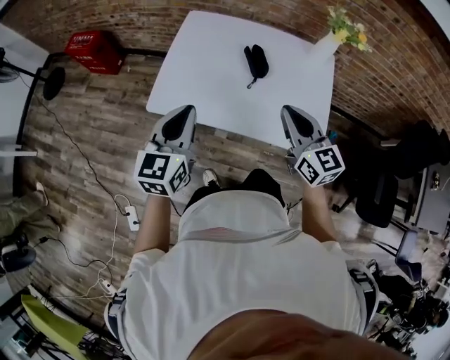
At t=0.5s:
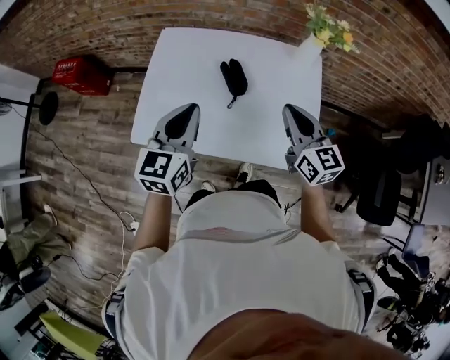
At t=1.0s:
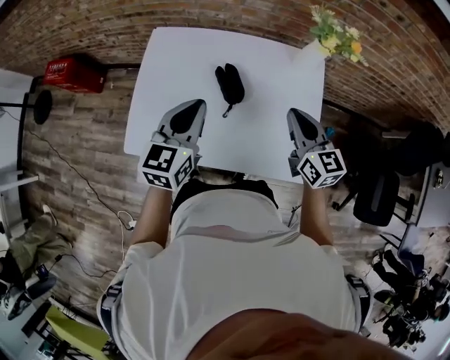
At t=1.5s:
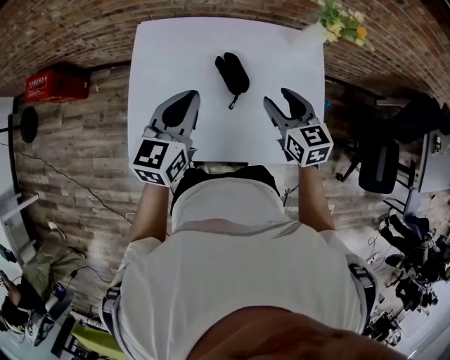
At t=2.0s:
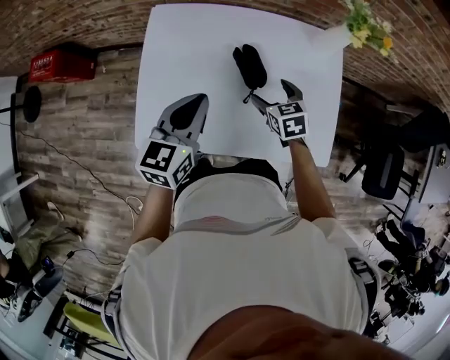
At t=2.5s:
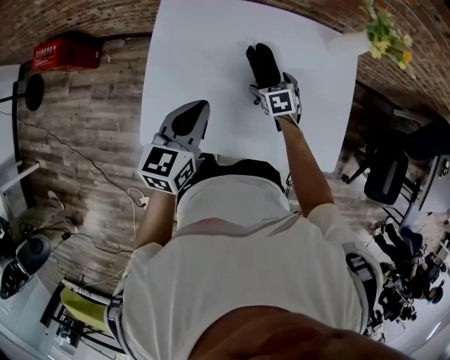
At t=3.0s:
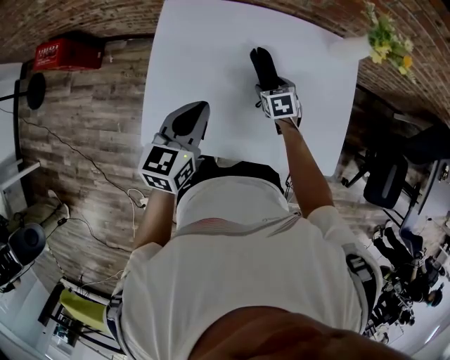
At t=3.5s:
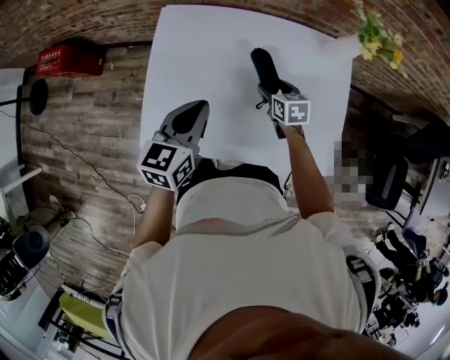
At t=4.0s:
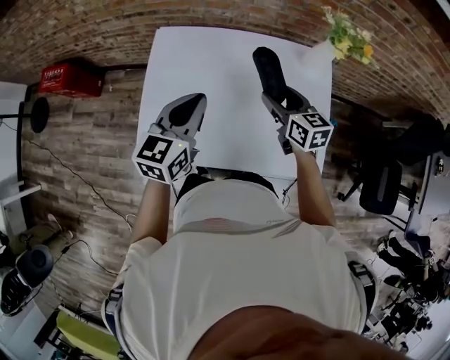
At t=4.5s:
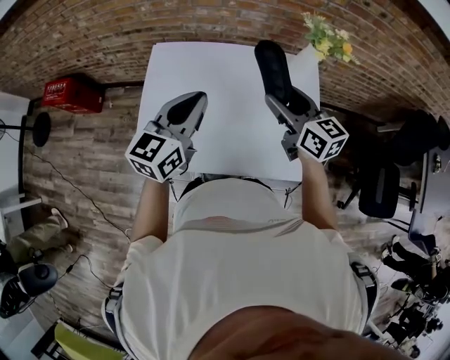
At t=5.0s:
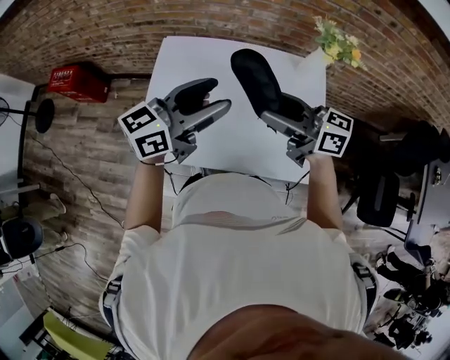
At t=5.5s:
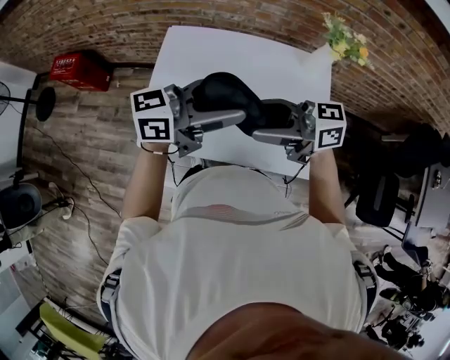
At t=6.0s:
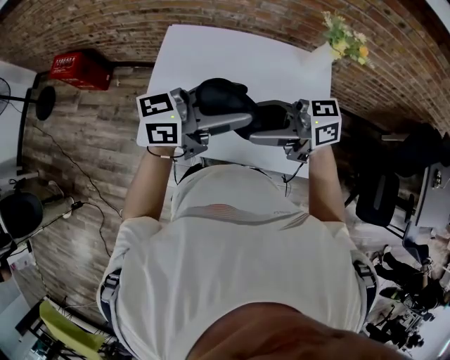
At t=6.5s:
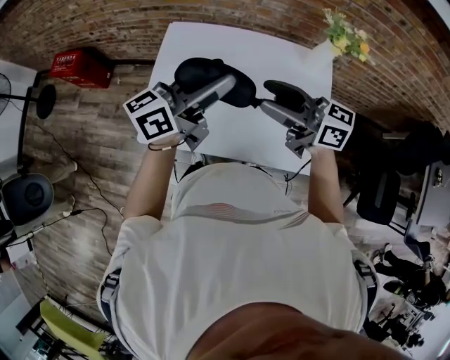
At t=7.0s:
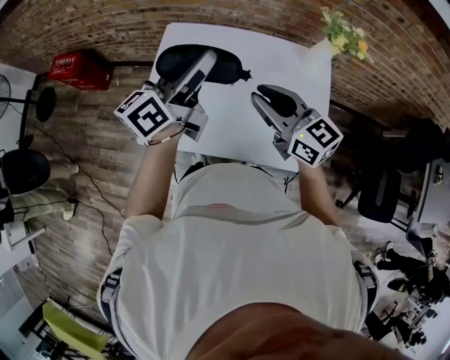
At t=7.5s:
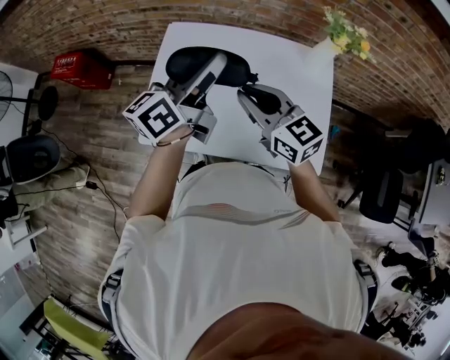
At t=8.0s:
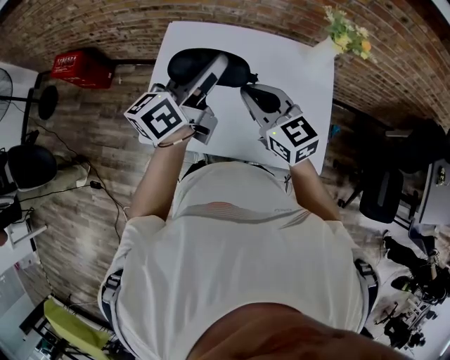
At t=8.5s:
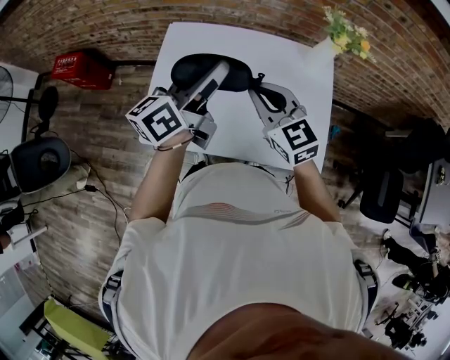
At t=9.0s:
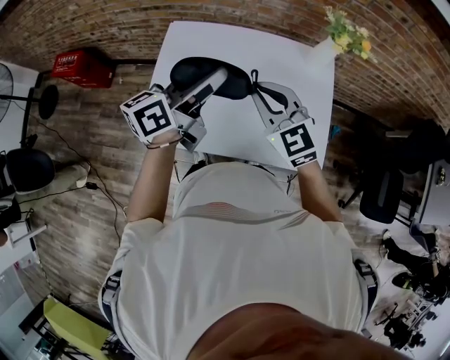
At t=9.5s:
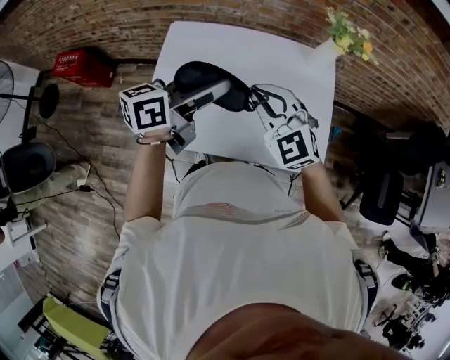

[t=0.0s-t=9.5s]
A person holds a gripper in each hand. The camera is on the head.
t=0.0s to t=2.0s: The right gripper heads forward and downward, covering about 30 cm, tips its fingers downward by some 40 degrees, and opens up. Meanwhile the left gripper shifts approximately 20 cm forward.
t=2.0s to t=4.0s: The right gripper goes roughly 10 cm upward, and swivels about 30 degrees.
t=4.0s to t=5.5s: The left gripper shifts by some 15 cm, swivels about 50 degrees, and opens up. The right gripper moves some 25 cm, and changes its angle by roughly 60 degrees.
t=5.5s to t=7.5s: The left gripper moves approximately 10 cm, and swivels approximately 40 degrees, while the right gripper ends up approximately 5 cm from where it was, changes its angle by about 50 degrees, and closes its fingers.
t=7.5s to t=9.5s: The right gripper swivels roughly 40 degrees. Meanwhile the left gripper changes place by approximately 5 cm, and rotates about 30 degrees.

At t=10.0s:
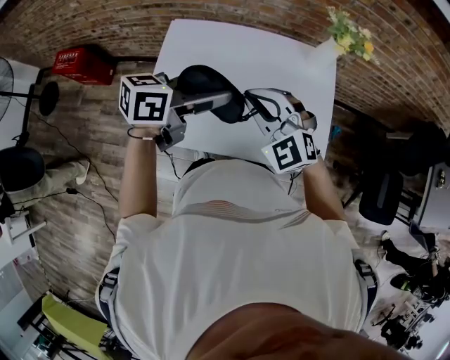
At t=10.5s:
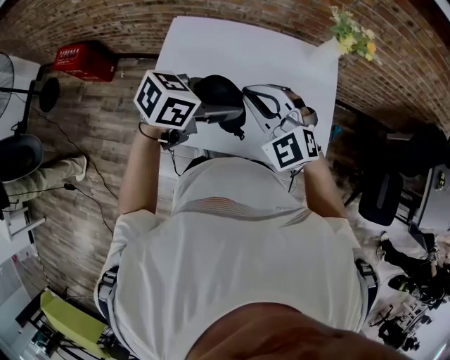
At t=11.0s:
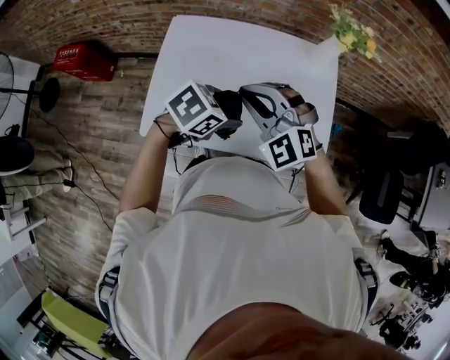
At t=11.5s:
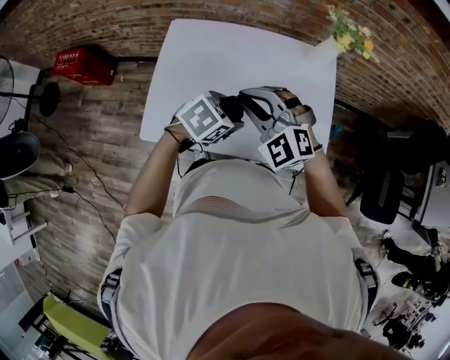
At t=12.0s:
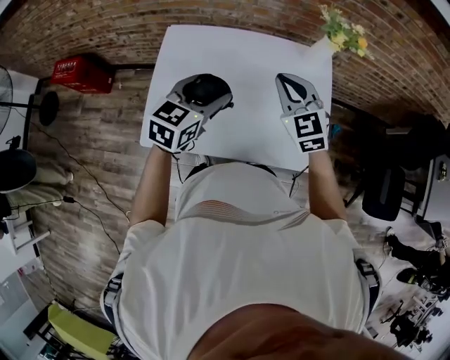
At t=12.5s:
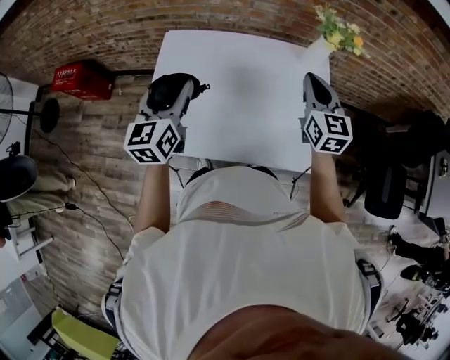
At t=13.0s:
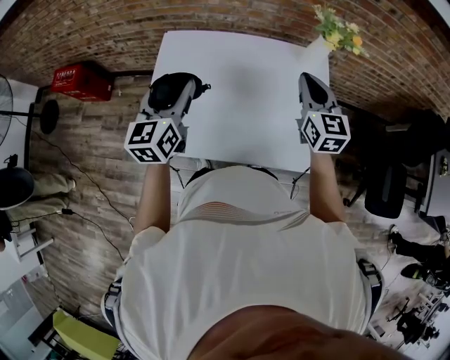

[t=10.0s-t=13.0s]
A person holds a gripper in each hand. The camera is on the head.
t=10.0s to t=11.5s: The left gripper heads downward, covering some 15 cm, and points its fingers some 40 degrees further downward.
t=11.5s to t=13.0s: The right gripper is displaced to the right and forward by about 20 cm, and rotates around the line of its fingers by roughly 50 degrees, clockwise from behind. The left gripper travels to the left, upward and forward by about 20 cm, and tilts its fingers roughly 40 degrees upward.

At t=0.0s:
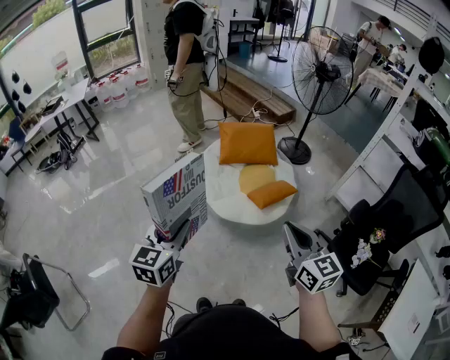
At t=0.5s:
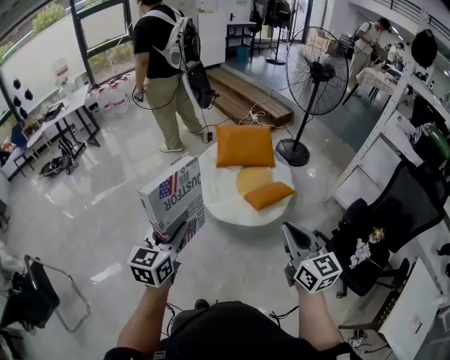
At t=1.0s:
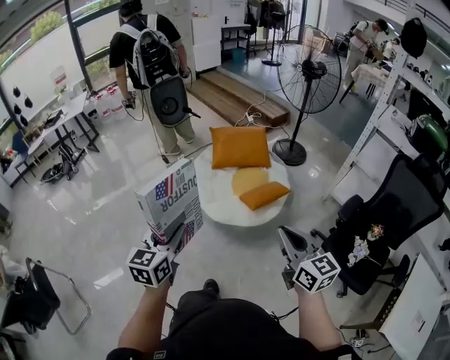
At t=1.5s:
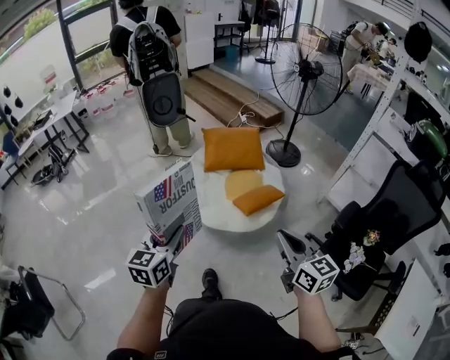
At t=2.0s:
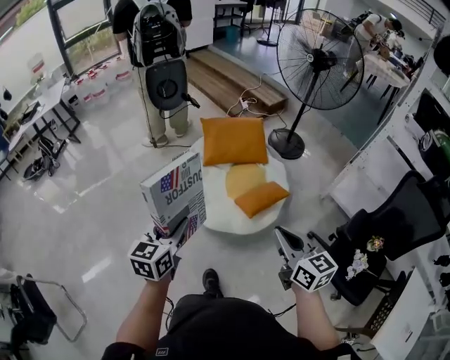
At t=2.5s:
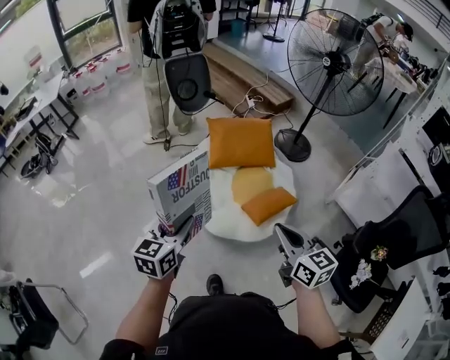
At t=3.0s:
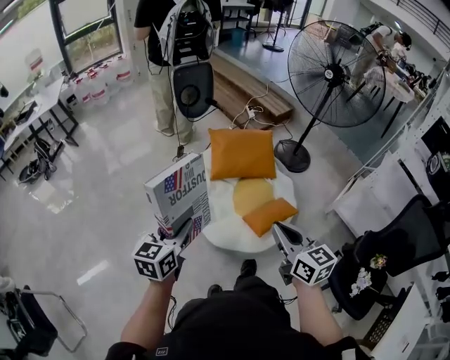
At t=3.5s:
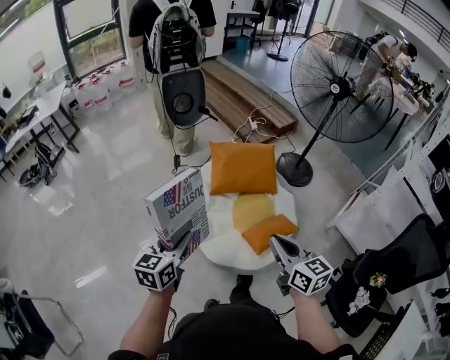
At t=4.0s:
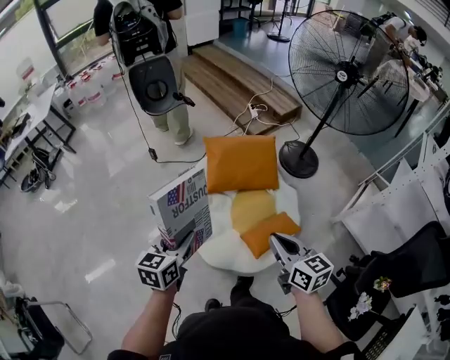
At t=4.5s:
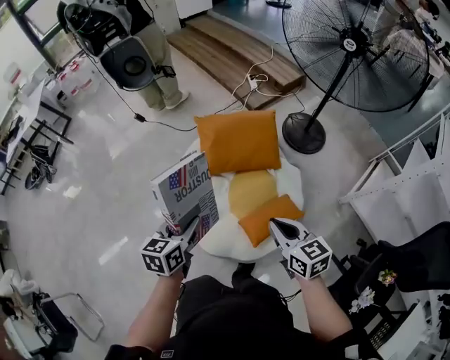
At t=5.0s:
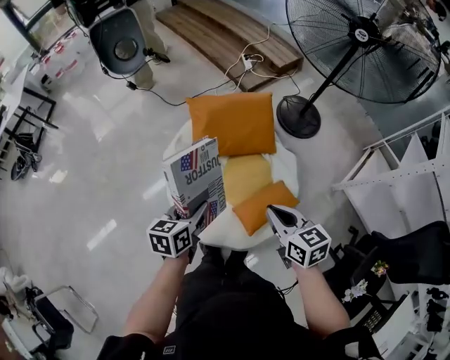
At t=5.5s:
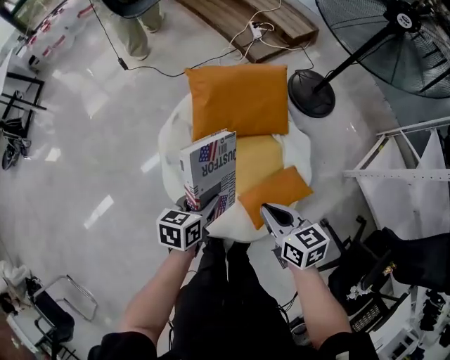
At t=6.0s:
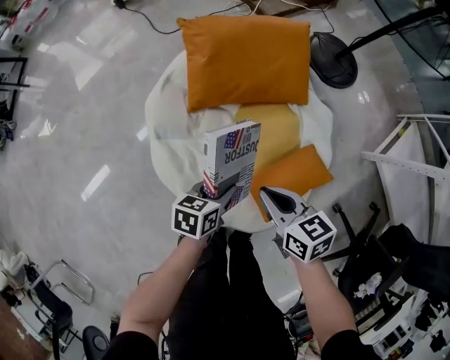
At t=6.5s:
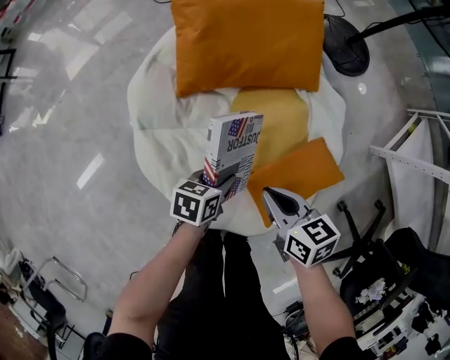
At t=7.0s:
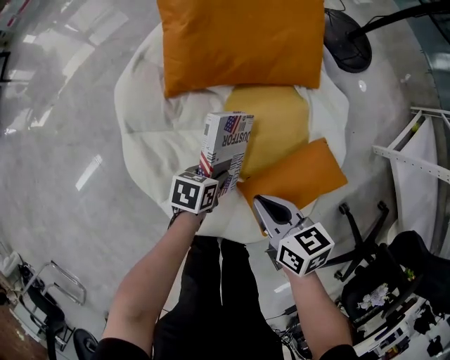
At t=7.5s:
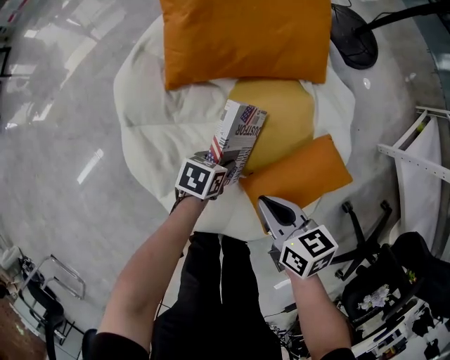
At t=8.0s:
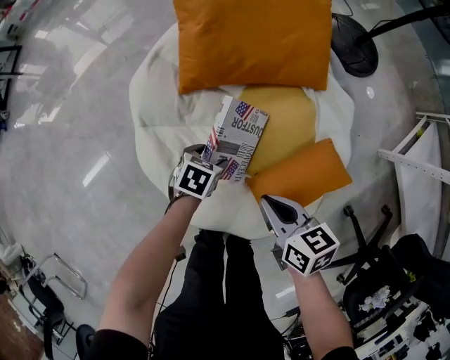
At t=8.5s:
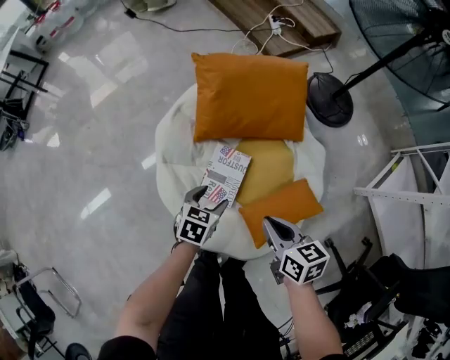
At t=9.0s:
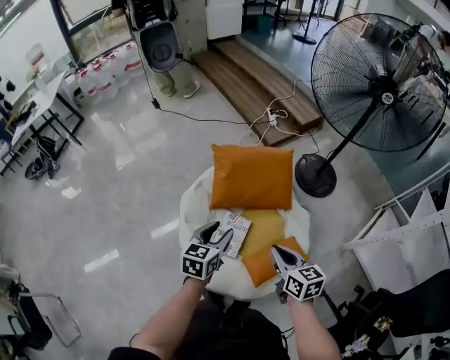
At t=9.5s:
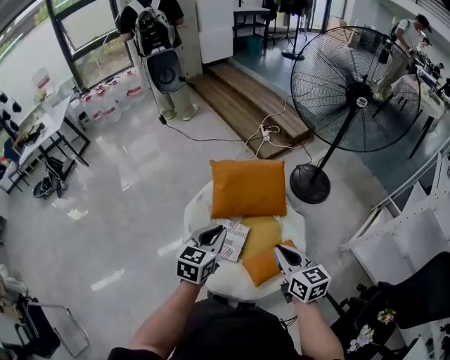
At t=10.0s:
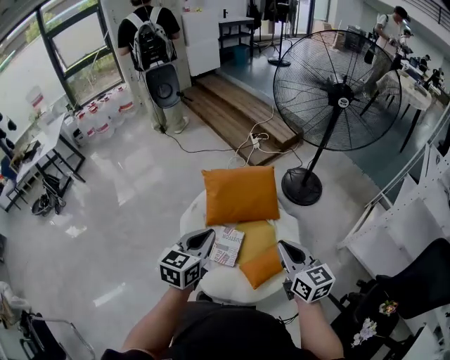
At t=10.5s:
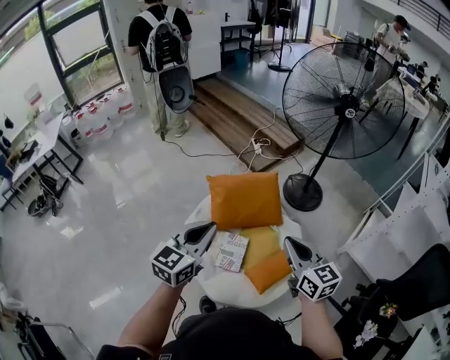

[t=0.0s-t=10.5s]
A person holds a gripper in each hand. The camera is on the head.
t=0.0s to t=2.0s: The left gripper travels forward and to the right by approximately 20 cm; the right gripper is displaced forward, to the right and downward by about 20 cm.
t=2.0s to t=4.0s: The grippers both shift forward by about 30 cm.
t=4.0s to t=6.5s: Both grippers move downward, about 50 cm. The right gripper swivels roughly 30 degrees, while the left gripper changes its angle by approximately 40 degrees.
t=6.5s to t=8.5s: The grippers both shift upward by roughly 10 cm. The left gripper changes its angle by about 20 degrees, and opens up.
t=8.5s to t=10.5s: Both grippers move upward, approximately 50 cm. The right gripper turns by about 40 degrees. The left gripper angles its fingers upward, by roughly 40 degrees, and closes up.

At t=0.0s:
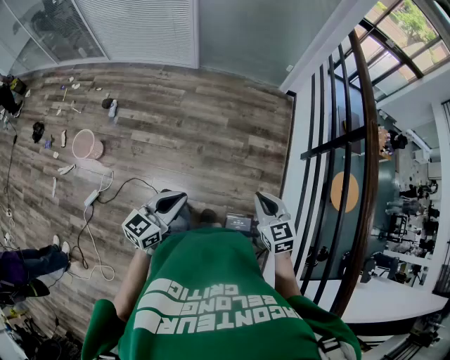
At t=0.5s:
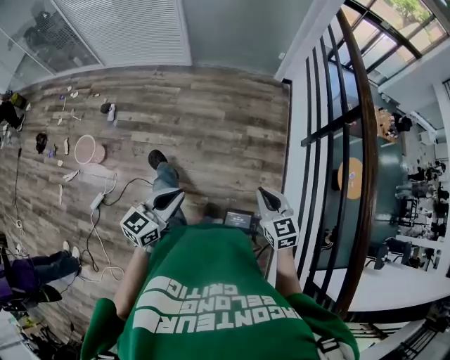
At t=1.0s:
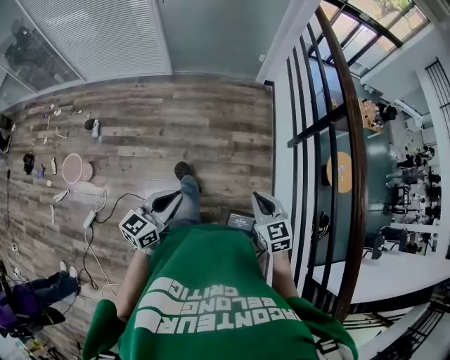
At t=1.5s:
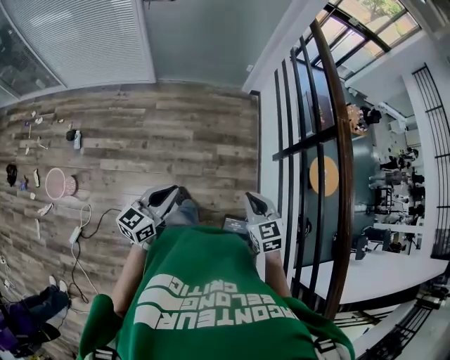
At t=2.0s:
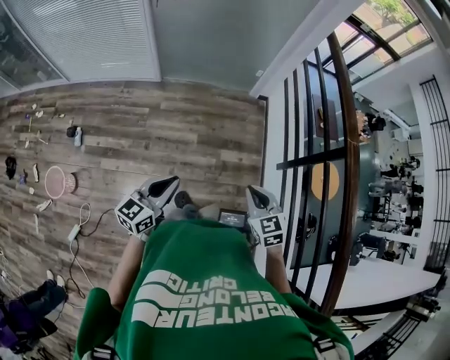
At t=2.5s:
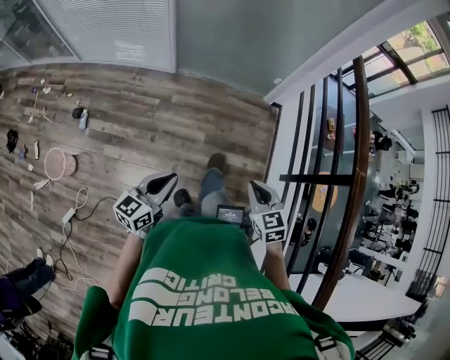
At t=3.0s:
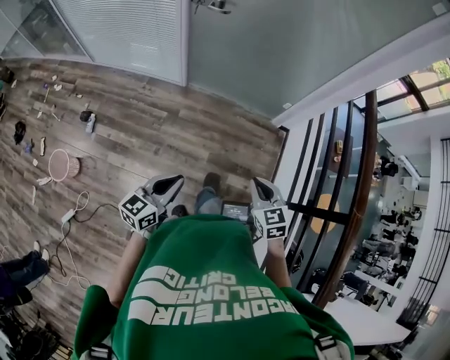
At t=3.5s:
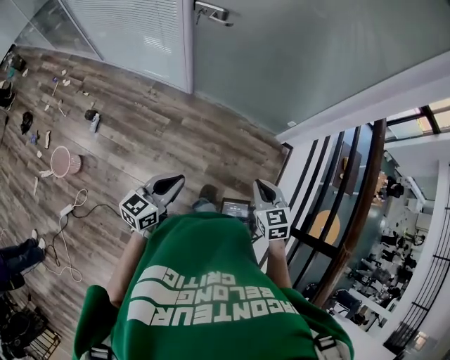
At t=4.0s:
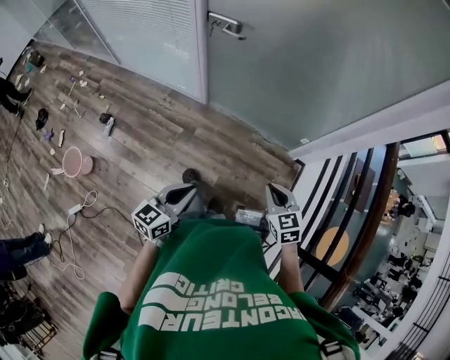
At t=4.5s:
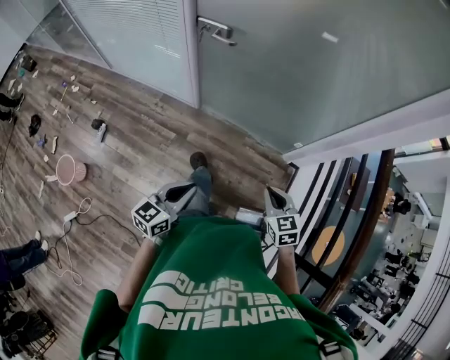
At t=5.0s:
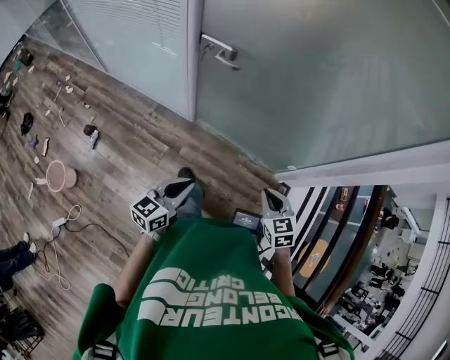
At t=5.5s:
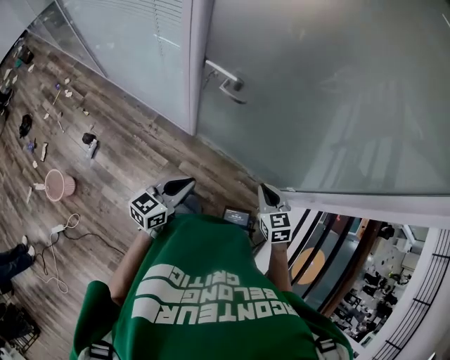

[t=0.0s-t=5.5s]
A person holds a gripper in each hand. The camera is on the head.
t=0.0s to t=2.0s: The two grippers go about 25 cm forward.
t=2.0s to t=3.5s: Both grippers move forward, some 25 cm.
t=3.5s to t=5.5s: Both grippers move forward, roughly 30 cm.
